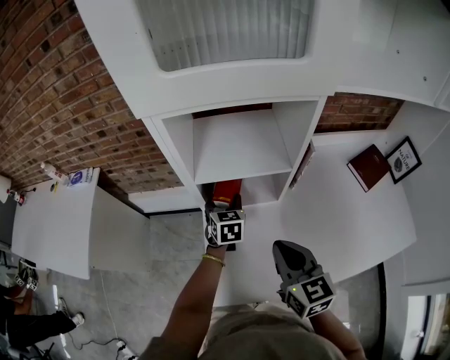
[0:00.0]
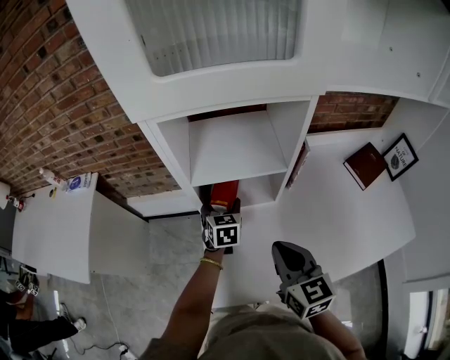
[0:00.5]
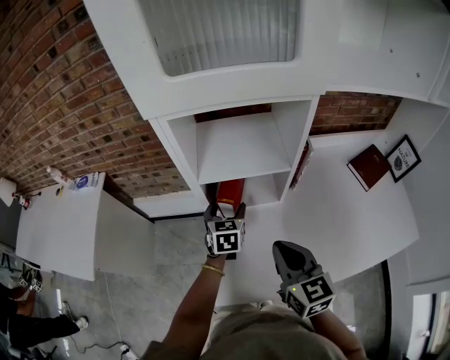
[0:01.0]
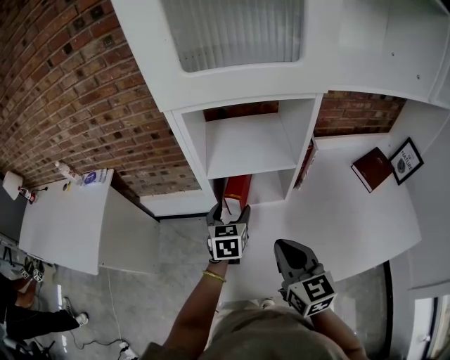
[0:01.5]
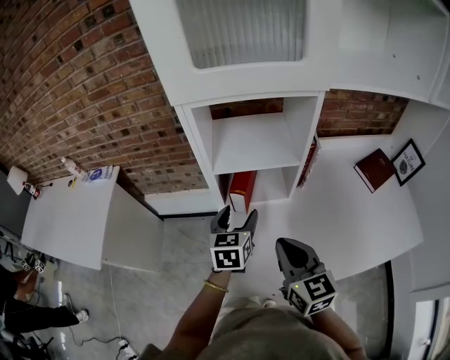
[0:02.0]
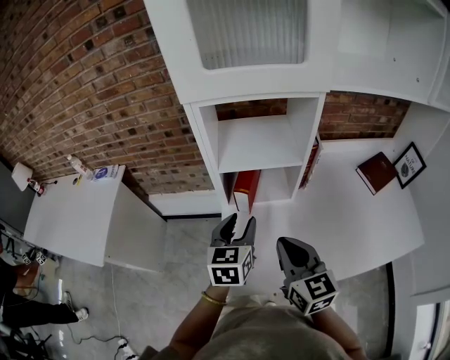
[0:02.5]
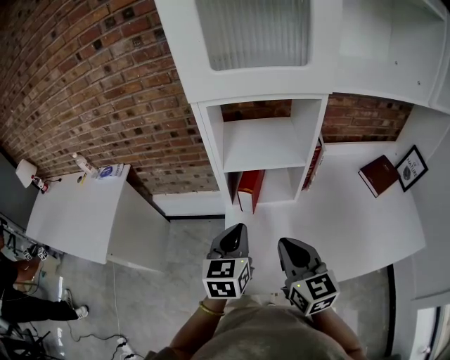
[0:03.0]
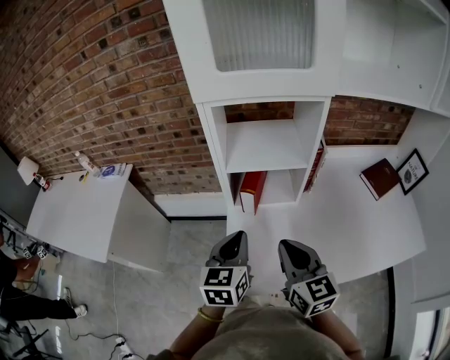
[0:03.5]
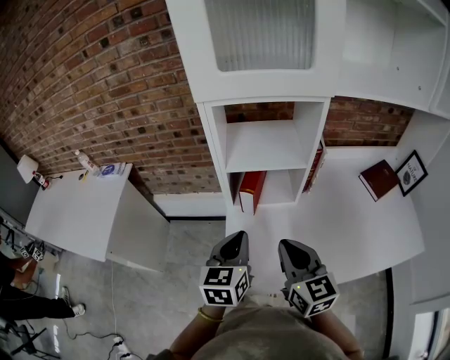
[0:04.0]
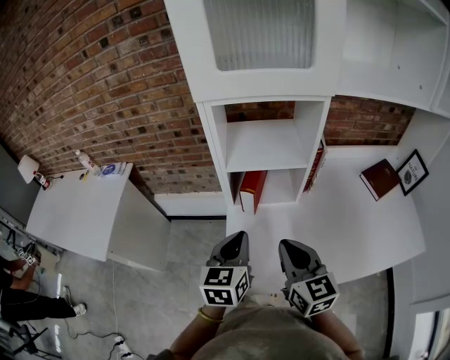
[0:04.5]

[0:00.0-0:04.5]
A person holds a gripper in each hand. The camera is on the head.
0:00.0 to 0:02.0: The left gripper moves backward and upward, approximately 15 cm.
0:02.0 to 0:04.5: The left gripper heads backward and upward, covering about 10 cm, and closes its fingers.

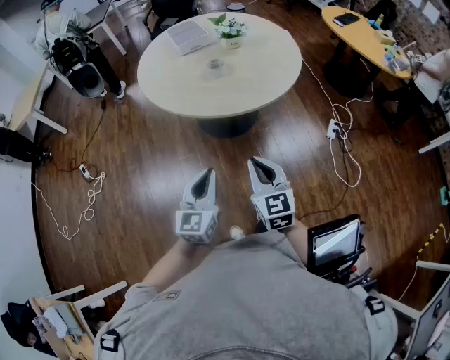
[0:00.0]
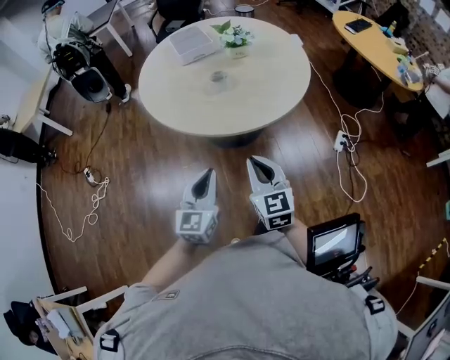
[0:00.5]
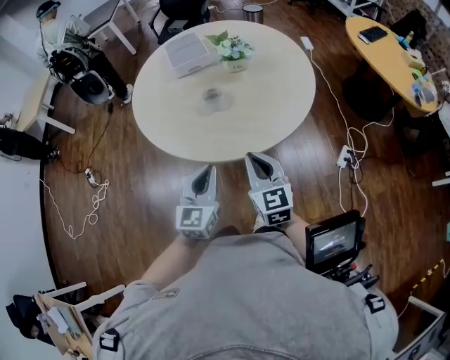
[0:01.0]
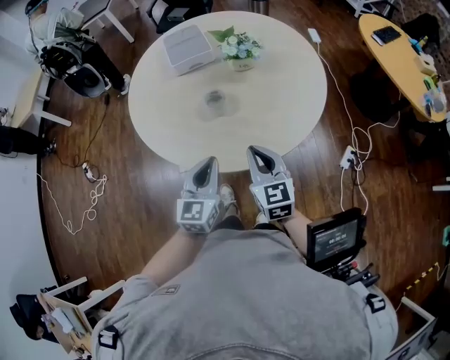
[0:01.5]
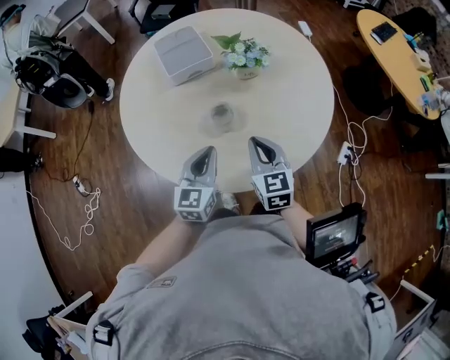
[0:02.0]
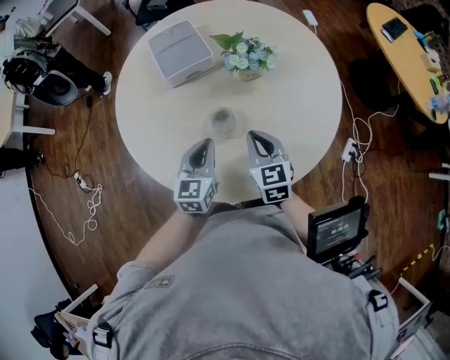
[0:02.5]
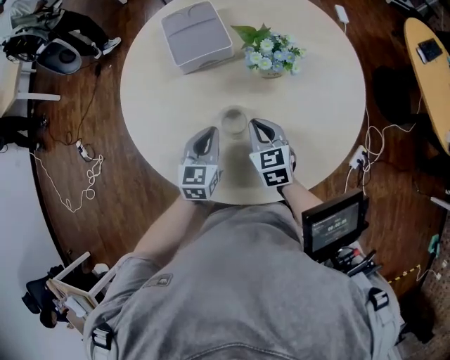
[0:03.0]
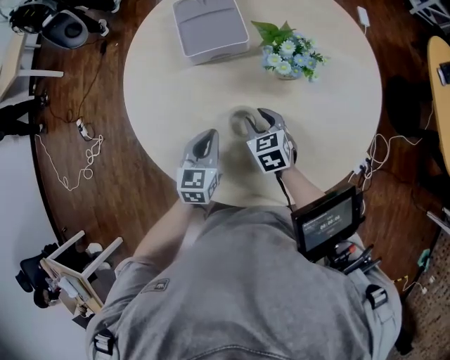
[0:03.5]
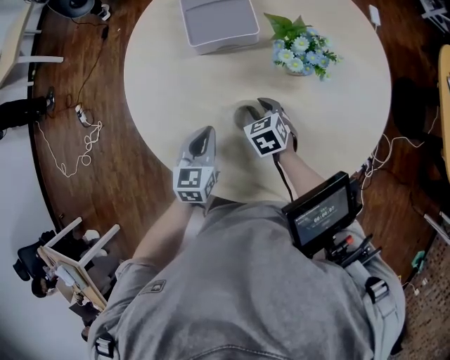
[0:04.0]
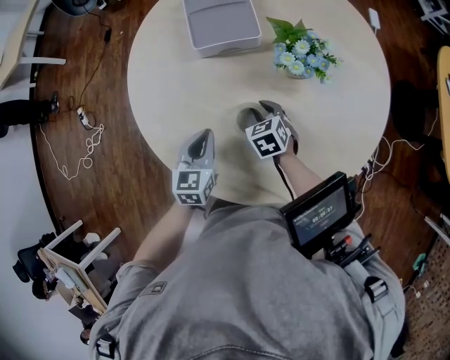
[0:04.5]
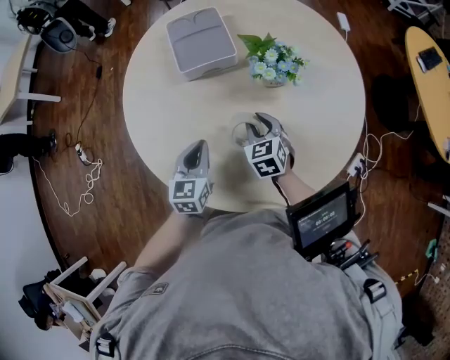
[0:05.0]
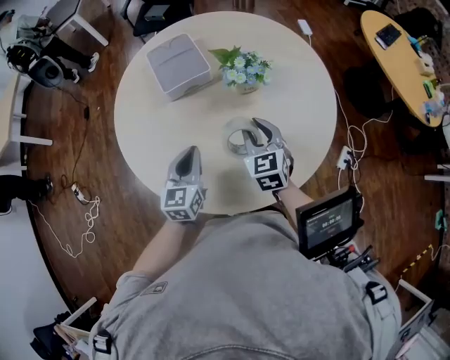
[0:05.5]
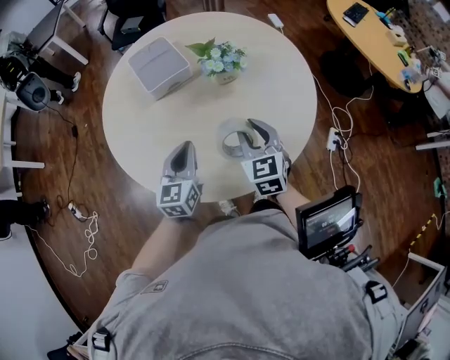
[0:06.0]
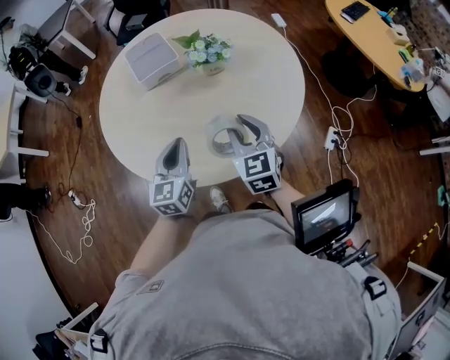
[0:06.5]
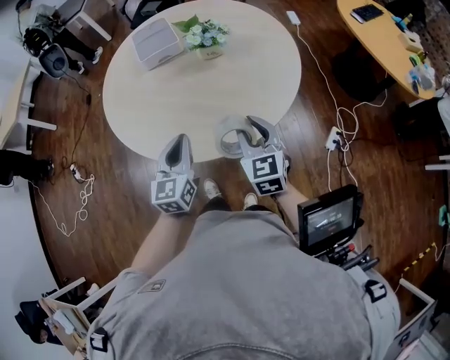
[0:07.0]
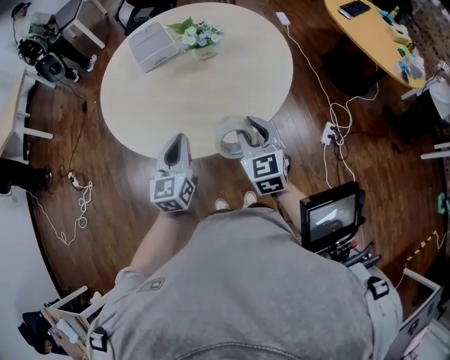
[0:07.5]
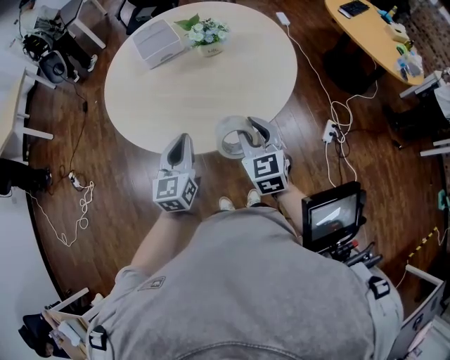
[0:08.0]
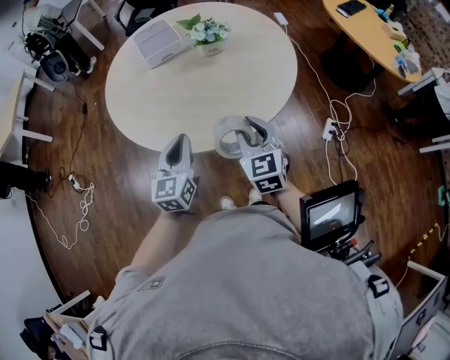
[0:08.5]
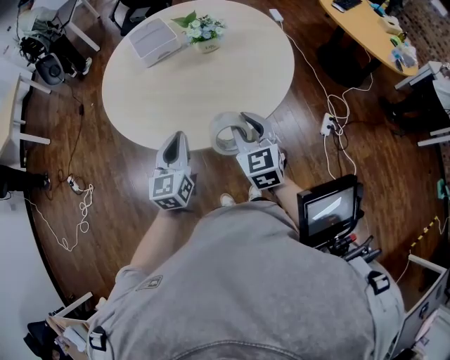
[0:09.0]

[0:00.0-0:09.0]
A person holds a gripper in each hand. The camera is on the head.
0:00.0 to 0:02.0: The two grippers travel together, forward, roughly 40 cm.
0:02.0 to 0:04.5: The left gripper heads downward and forward, covering approximately 15 cm, and swivels some 30 degrees; the right gripper goes some 25 cm downward and forward, angles its fingers downward, by approximately 30 degrees, and opens its fingers.
0:04.5 to 0:07.0: The right gripper moves roughly 40 cm, and tips its fingers upward by some 30 degrees; the left gripper moves some 25 cm, and rotates some 20 degrees.
0:07.0 to 0:09.0: The right gripper travels to the left and backward by roughly 10 cm. Meanwhile the left gripper changes place by about 5 cm.

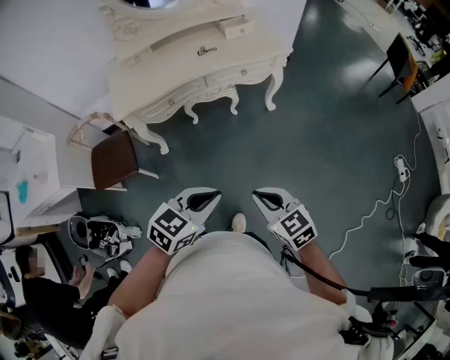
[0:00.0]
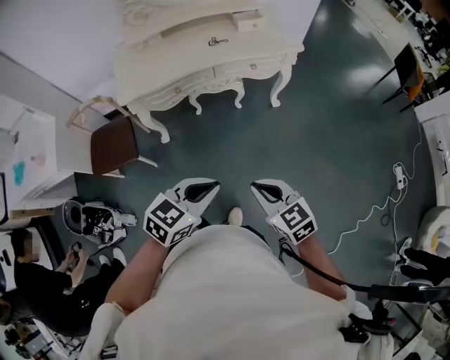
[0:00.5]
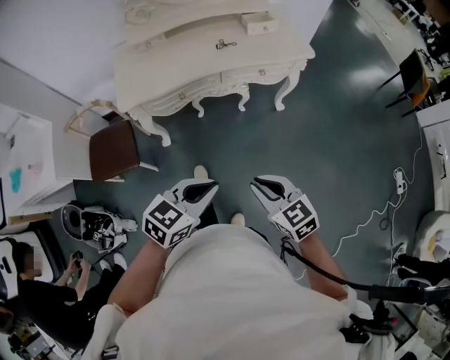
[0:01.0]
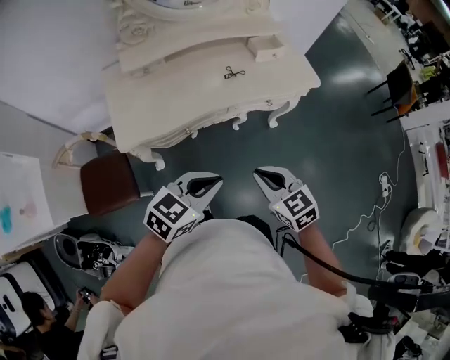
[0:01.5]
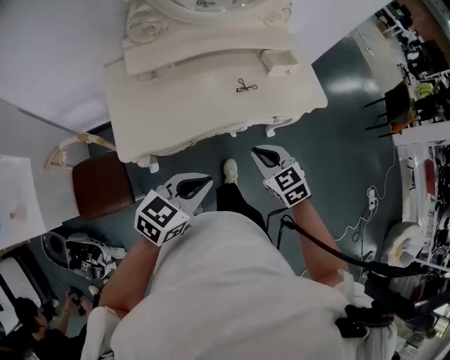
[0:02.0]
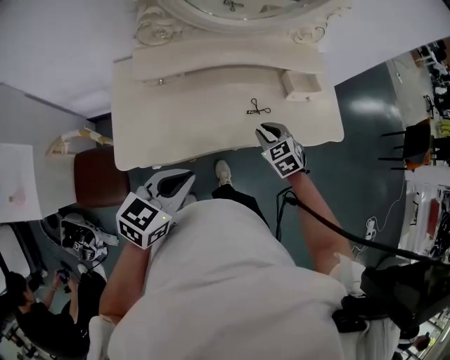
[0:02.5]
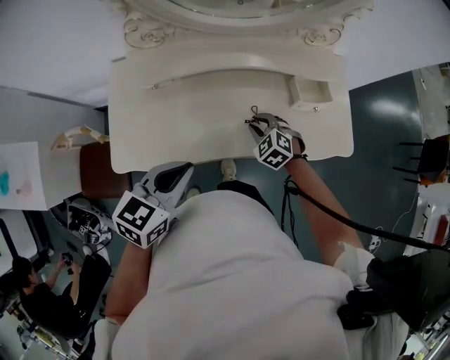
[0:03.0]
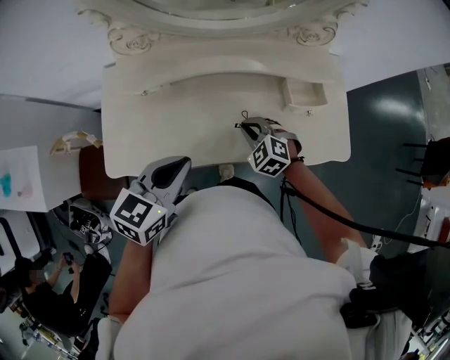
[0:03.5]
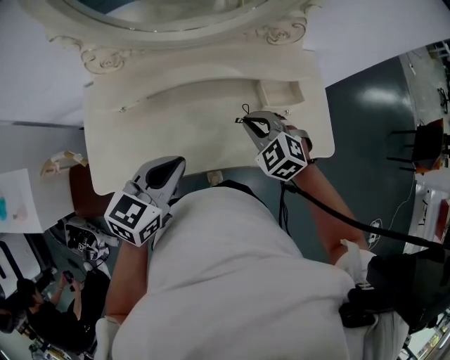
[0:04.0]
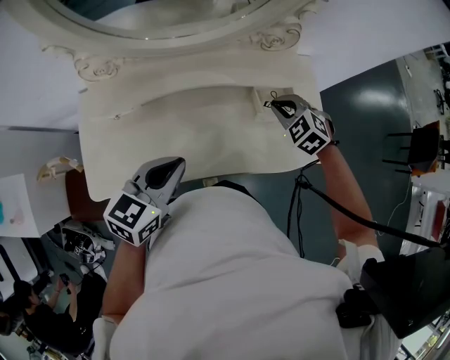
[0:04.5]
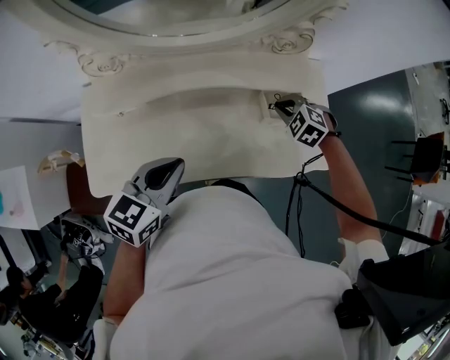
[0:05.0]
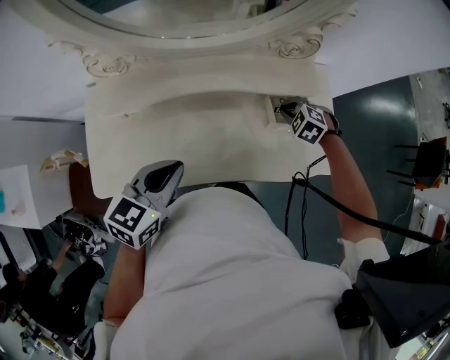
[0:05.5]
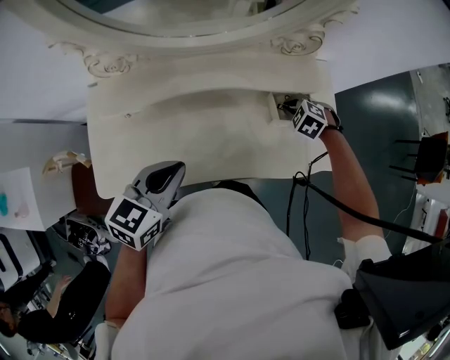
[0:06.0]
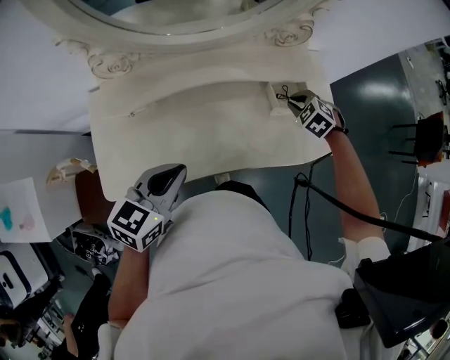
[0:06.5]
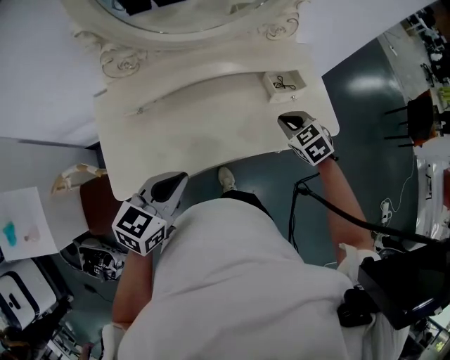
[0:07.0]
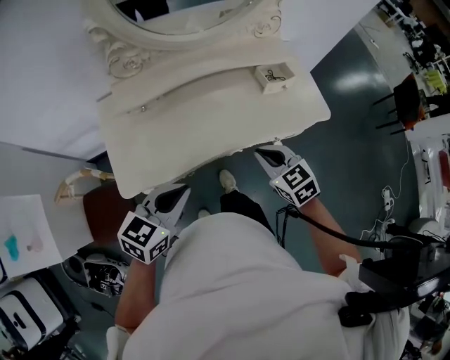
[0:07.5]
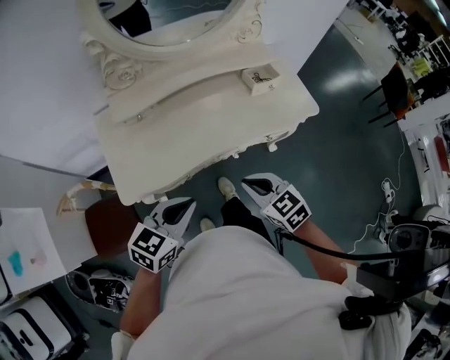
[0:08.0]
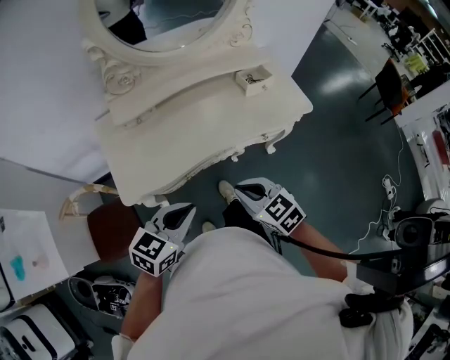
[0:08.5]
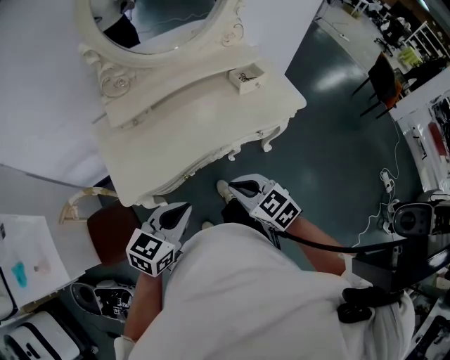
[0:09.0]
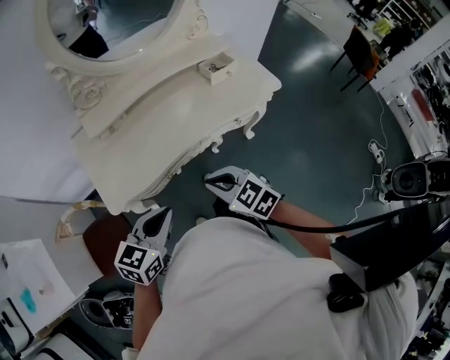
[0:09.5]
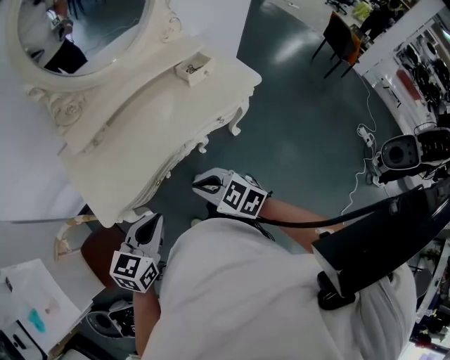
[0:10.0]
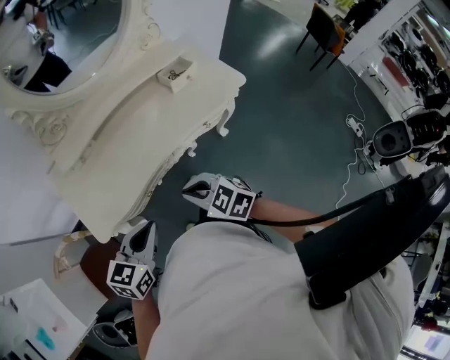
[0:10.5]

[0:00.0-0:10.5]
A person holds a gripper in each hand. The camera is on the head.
0:00.0 to 0:02.0: Both grippers are carried forward and to the left, roughly 40 cm.
0:02.0 to 0:04.0: The two grippers go approximately 30 cm forward. The right gripper rotates approximately 30 degrees; the left gripper turns by some 20 degrees.
0:04.0 to 0:06.5: The right gripper shifts roughly 15 cm to the right, forward and downward, and turns by about 20 degrees.
0:06.5 to 0:08.5: The left gripper goes some 30 cm backward. Meanwhile the right gripper goes roughly 50 cm backward, and swivels roughly 40 degrees.
0:08.5 to 0:10.5: There are only small adjustments of the grippers.

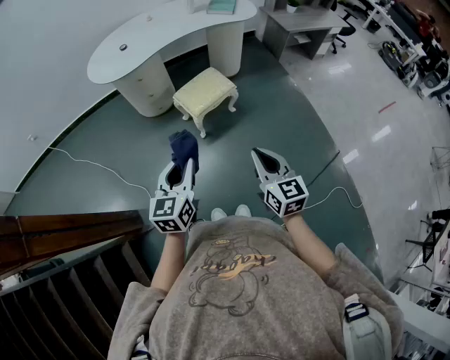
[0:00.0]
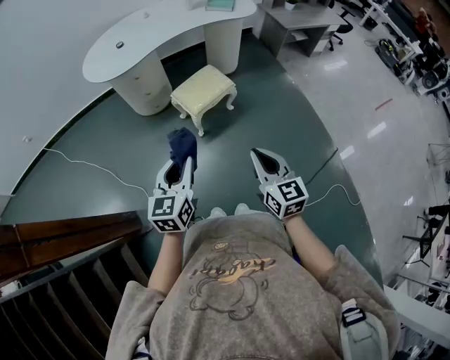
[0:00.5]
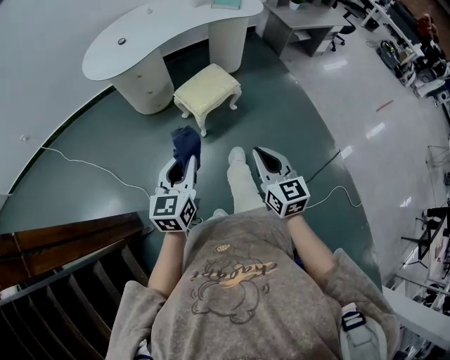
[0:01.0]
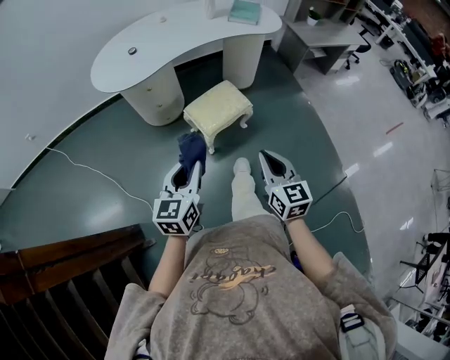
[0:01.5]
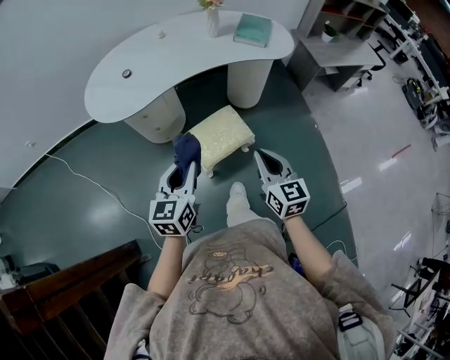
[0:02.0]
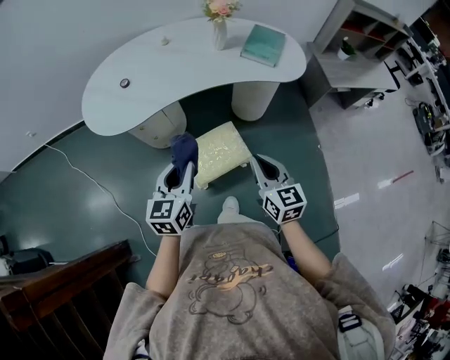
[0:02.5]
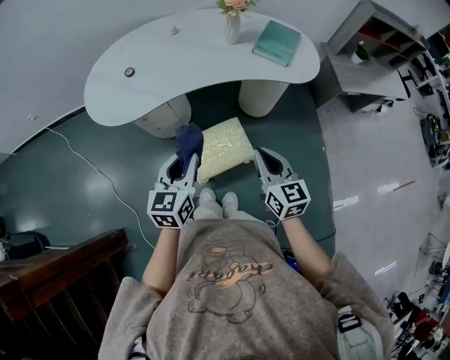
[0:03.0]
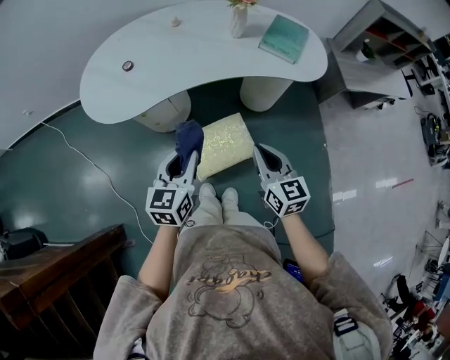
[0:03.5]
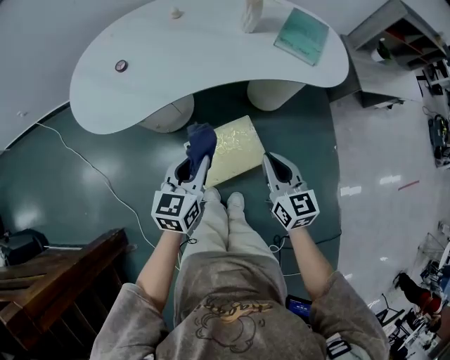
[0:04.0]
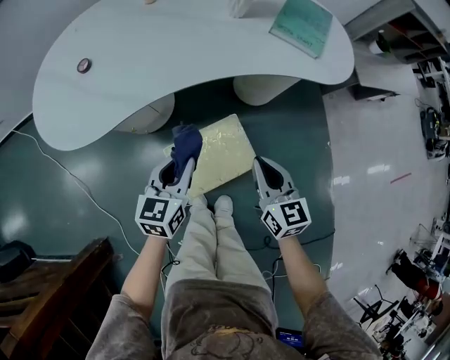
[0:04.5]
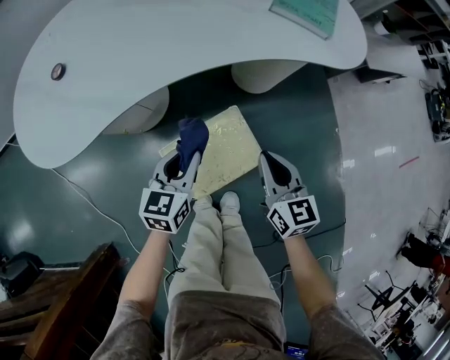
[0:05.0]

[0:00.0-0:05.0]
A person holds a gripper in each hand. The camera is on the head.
0:00.0 to 0:02.5: The two grippers travel together, forward, approximately 50 cm.
0:02.5 to 0:05.0: Both grippers travel together downward and forward, approximately 30 cm.
